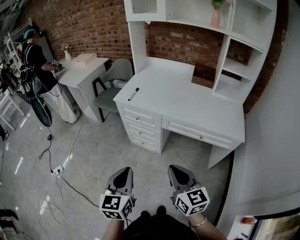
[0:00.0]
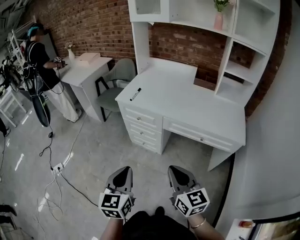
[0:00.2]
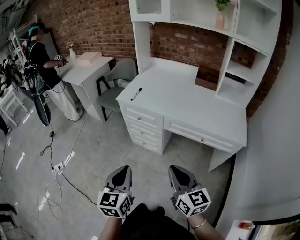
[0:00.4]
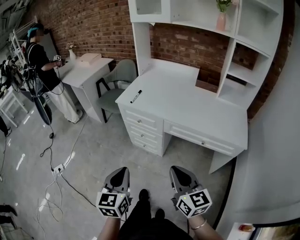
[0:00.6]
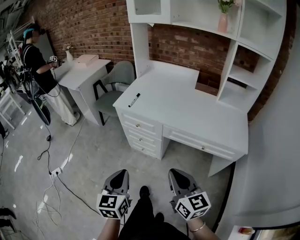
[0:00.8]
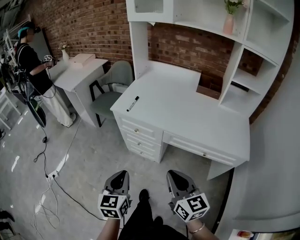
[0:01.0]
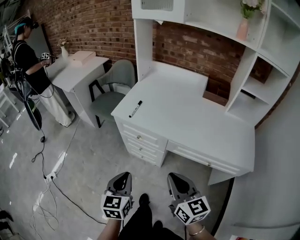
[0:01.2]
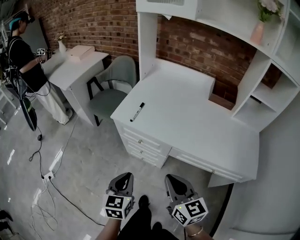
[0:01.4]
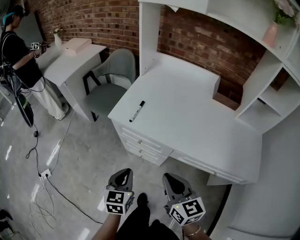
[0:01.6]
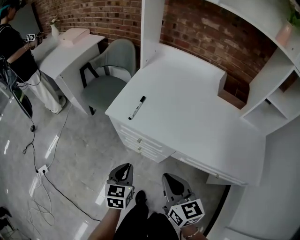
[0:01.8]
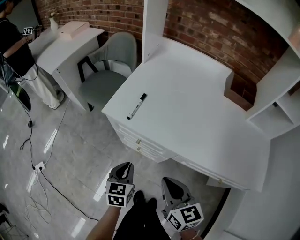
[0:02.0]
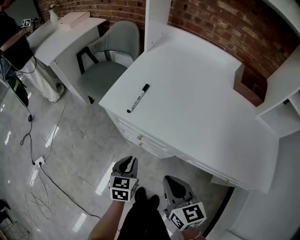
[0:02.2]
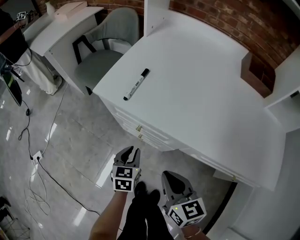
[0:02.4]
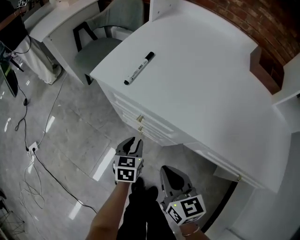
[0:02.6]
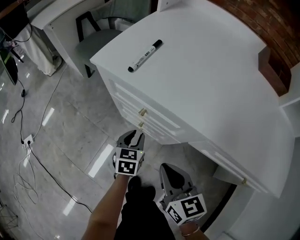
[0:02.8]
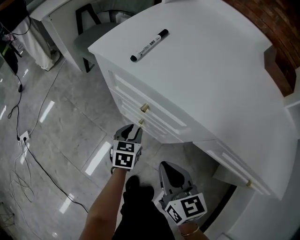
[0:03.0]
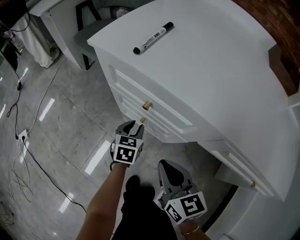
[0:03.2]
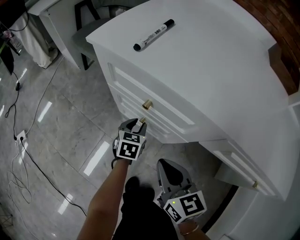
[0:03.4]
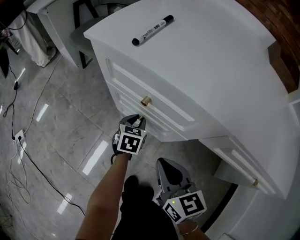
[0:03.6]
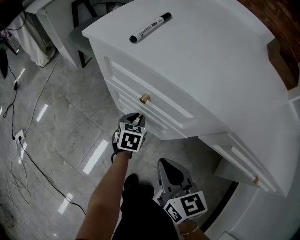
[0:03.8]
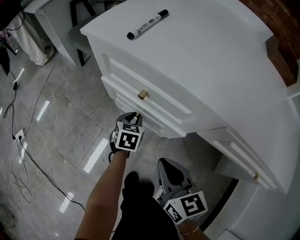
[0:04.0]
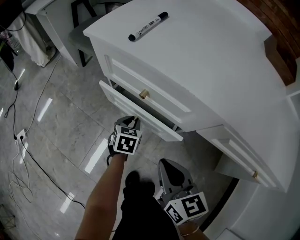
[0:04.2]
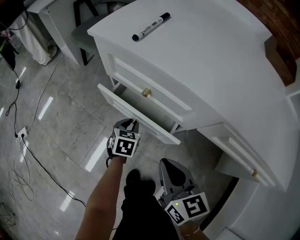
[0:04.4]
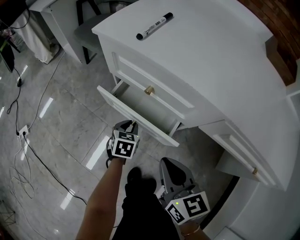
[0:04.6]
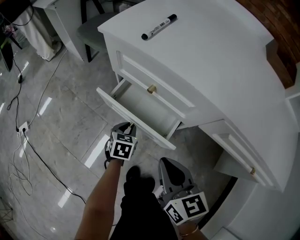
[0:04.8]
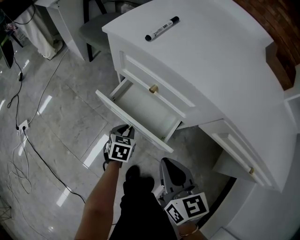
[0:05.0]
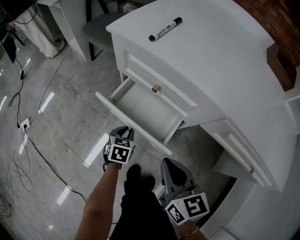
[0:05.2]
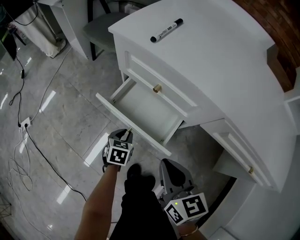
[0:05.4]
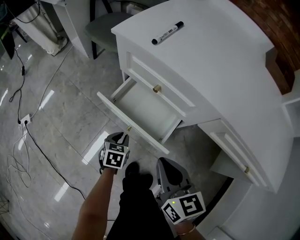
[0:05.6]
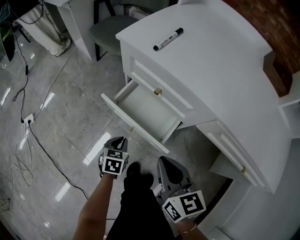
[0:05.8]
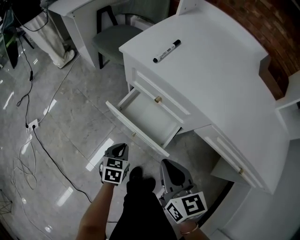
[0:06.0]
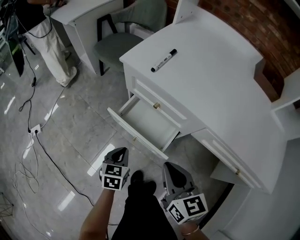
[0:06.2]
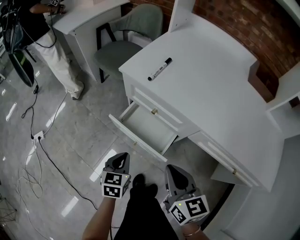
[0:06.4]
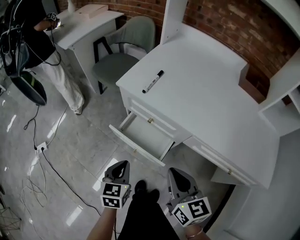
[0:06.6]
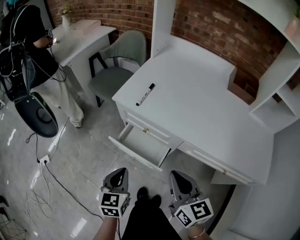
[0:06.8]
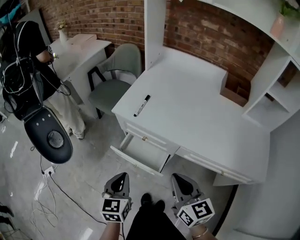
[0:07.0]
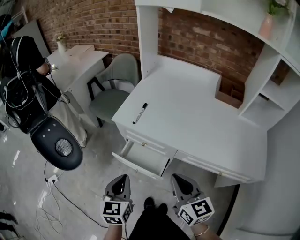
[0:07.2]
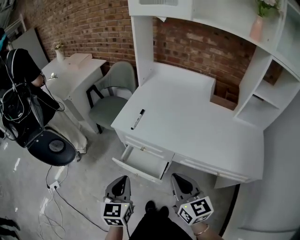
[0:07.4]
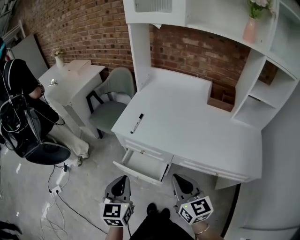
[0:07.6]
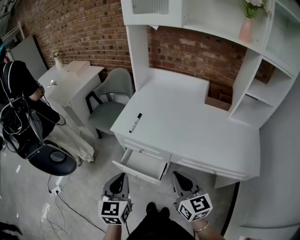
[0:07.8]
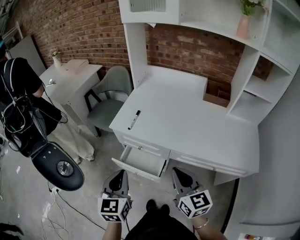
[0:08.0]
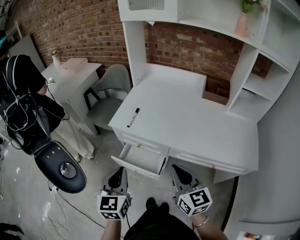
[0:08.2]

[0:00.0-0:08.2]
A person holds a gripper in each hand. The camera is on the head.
0:00.0 to 0:01.6: The left gripper travels forward and downward by approximately 35 cm; the right gripper is displaced forward by some 30 cm.
0:01.6 to 0:03.2: The right gripper goes about 30 cm downward, while the left gripper moves downward and forward, roughly 40 cm, and opens its fingers.
0:03.2 to 0:05.0: The left gripper heads backward, covering about 10 cm. The right gripper heads backward, covering about 5 cm.
0:05.0 to 0:06.6: The left gripper shifts approximately 30 cm upward. Meanwhile the right gripper goes about 15 cm upward.
0:06.6 to 0:08.2: The right gripper moves upward and to the right, some 15 cm. The left gripper travels upward by roughly 25 cm.

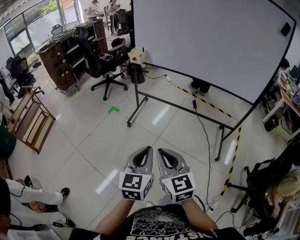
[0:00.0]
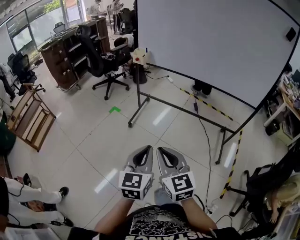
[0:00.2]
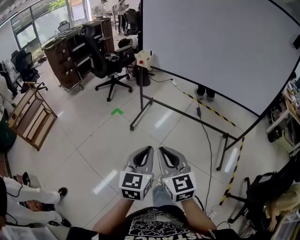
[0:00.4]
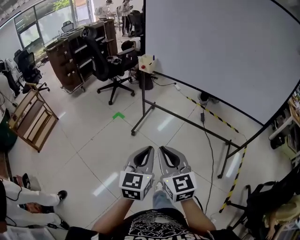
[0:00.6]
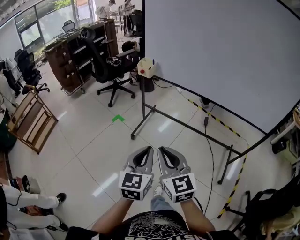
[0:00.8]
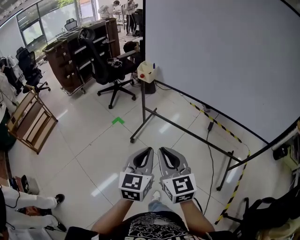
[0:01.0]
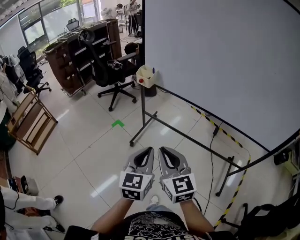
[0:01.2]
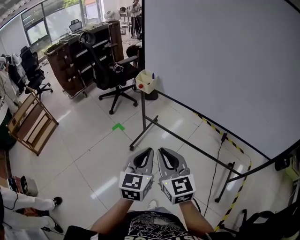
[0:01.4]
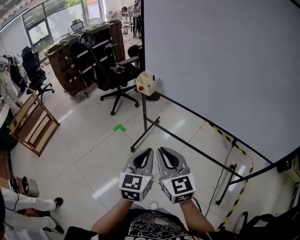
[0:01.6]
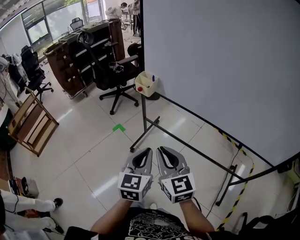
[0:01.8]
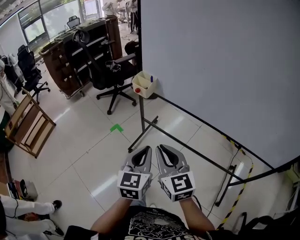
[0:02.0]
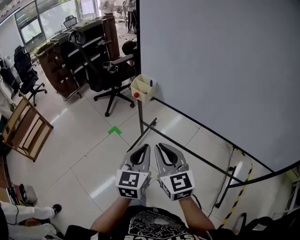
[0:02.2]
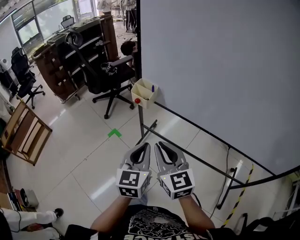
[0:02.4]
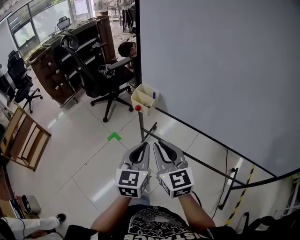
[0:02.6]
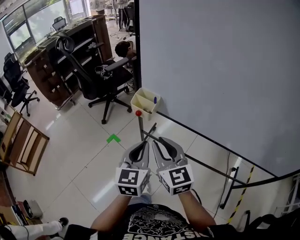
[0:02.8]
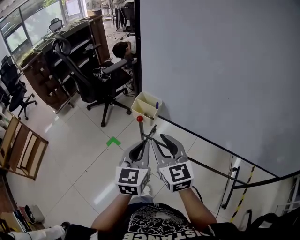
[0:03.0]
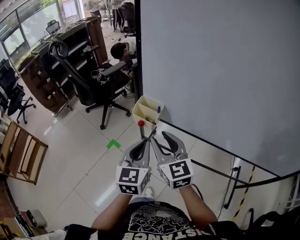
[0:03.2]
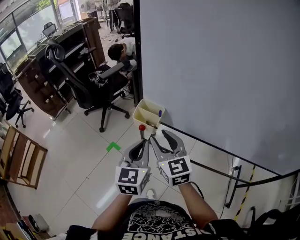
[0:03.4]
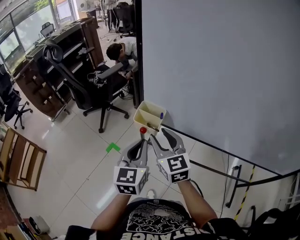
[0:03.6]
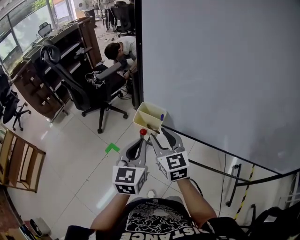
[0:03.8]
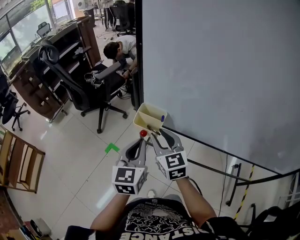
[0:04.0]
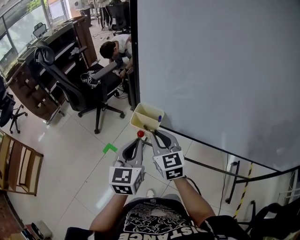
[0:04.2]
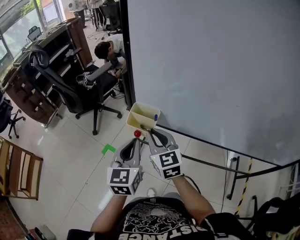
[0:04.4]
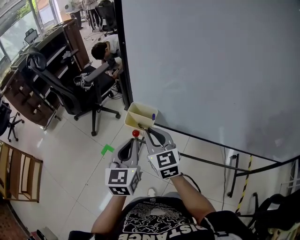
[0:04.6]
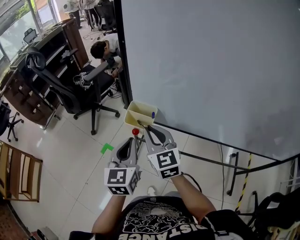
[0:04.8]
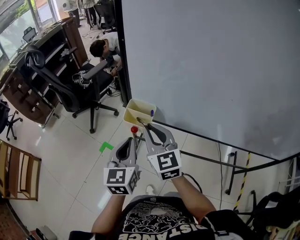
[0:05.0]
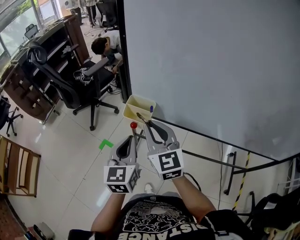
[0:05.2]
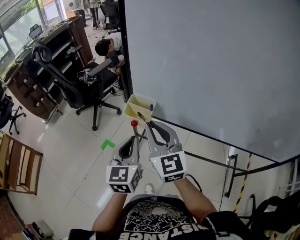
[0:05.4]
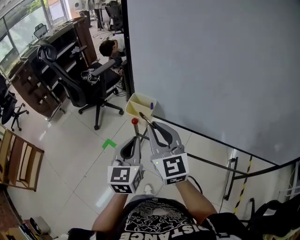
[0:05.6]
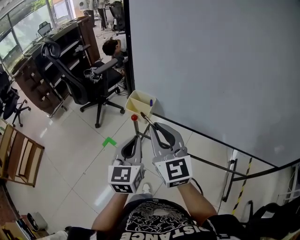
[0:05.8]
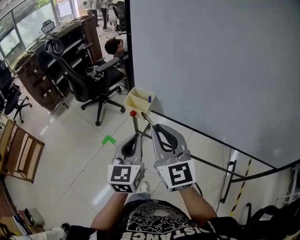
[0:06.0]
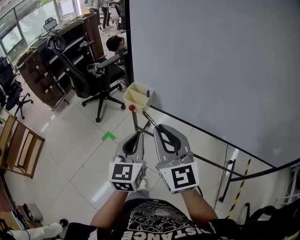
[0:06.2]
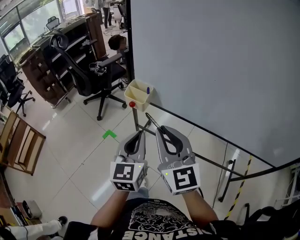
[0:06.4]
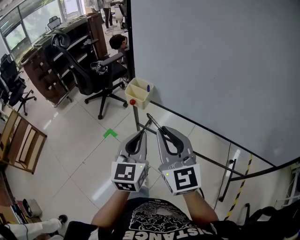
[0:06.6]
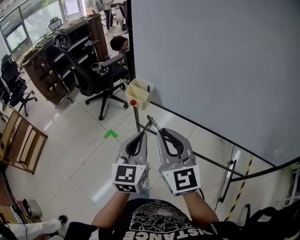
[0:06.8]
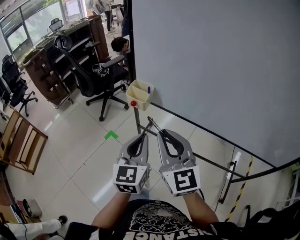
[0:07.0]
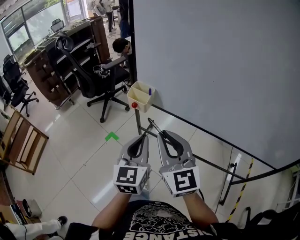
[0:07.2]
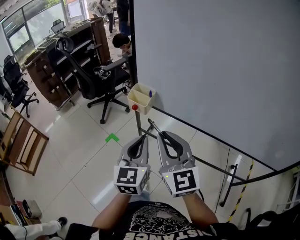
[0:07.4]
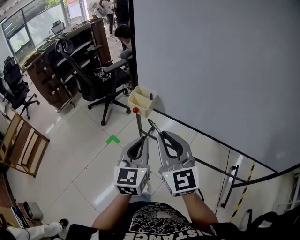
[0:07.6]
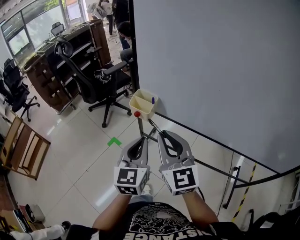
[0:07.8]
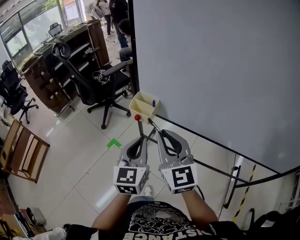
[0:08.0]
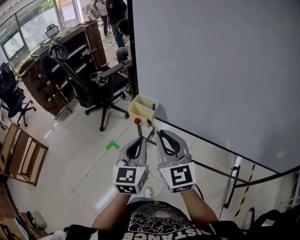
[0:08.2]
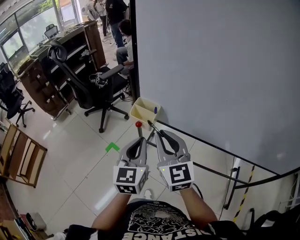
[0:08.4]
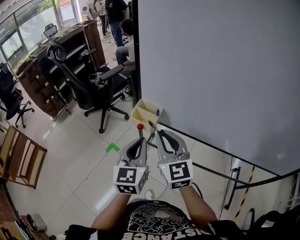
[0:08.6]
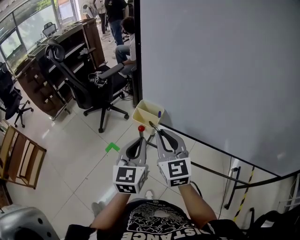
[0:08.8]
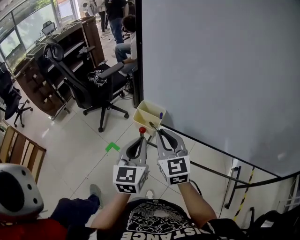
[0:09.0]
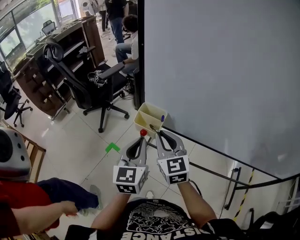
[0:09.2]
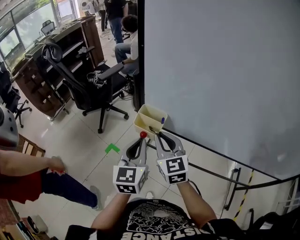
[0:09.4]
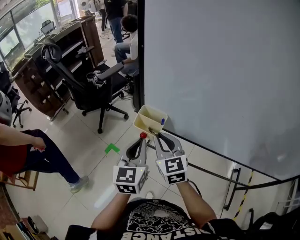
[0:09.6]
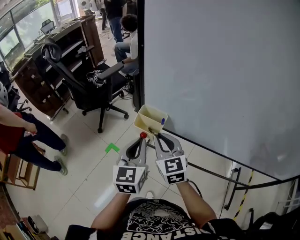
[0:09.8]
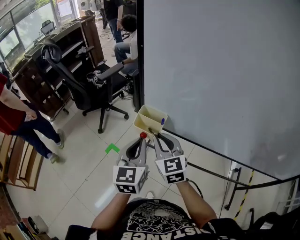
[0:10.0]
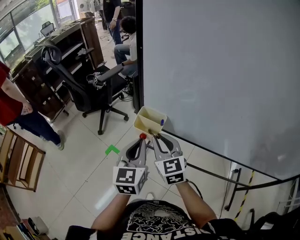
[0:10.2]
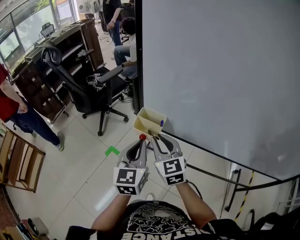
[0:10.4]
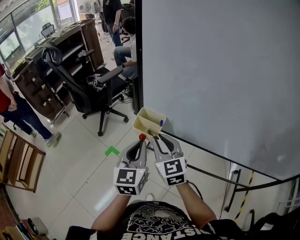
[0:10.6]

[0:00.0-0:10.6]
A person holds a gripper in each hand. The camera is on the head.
0:00.0 to 0:01.6: Both grippers travel together forward, approximately 35 cm.
0:01.6 to 0:03.0: The two grippers go roughly 30 cm forward. The right gripper opens its fingers.
0:03.0 to 0:04.6: Both grippers move forward, roughly 10 cm.
0:04.6 to 0:06.0: The right gripper is displaced backward and upward by roughly 20 cm. The left gripper goes some 10 cm backward.
0:07.6 to 0:09.0: The right gripper shifts approximately 20 cm forward and downward; the left gripper moves forward, roughly 15 cm.
0:09.0 to 0:10.6: The grippers make only small movements.

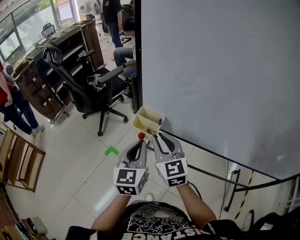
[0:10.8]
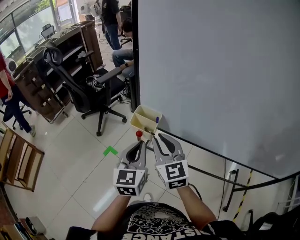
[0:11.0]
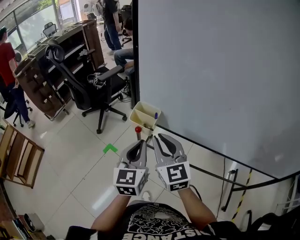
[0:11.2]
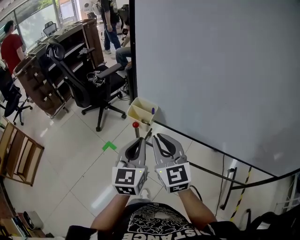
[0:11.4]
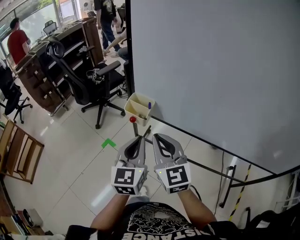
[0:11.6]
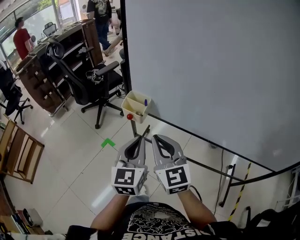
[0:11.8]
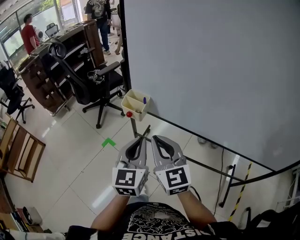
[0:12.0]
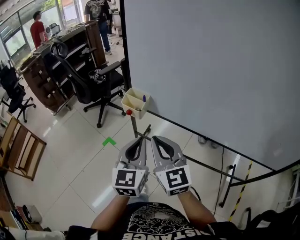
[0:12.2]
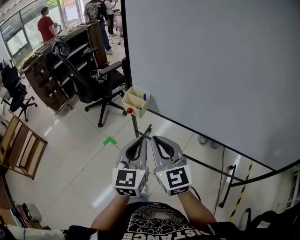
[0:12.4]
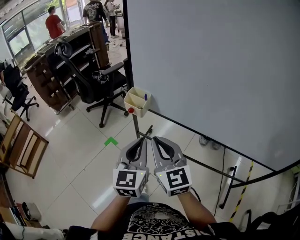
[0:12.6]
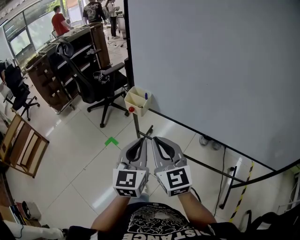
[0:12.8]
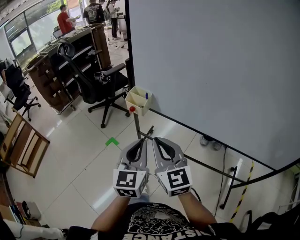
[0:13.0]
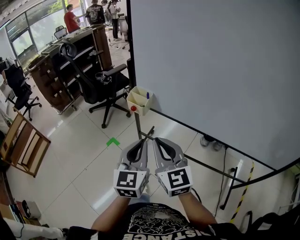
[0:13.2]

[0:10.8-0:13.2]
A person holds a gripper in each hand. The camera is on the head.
0:10.8 to 0:12.0: The left gripper travels backward and to the right by roughly 15 cm, while the right gripper goes about 15 cm backward.
0:12.0 to 0:13.2: The grippers both shift backward by approximately 5 cm.

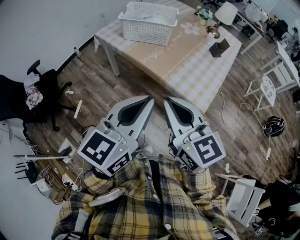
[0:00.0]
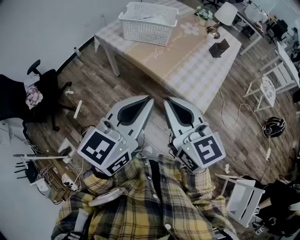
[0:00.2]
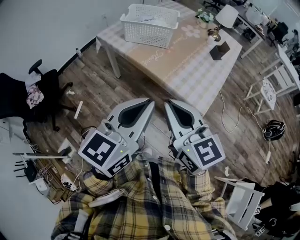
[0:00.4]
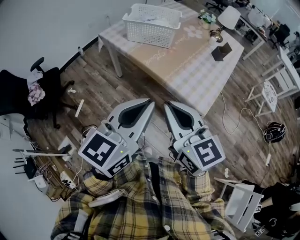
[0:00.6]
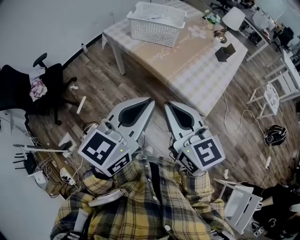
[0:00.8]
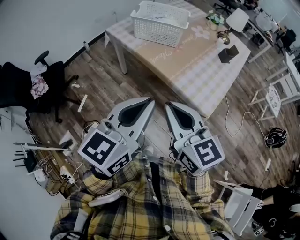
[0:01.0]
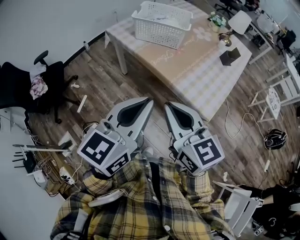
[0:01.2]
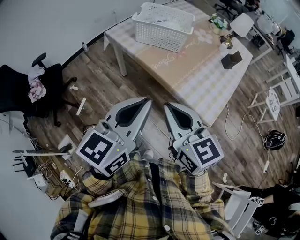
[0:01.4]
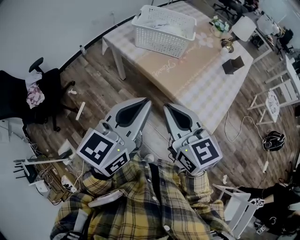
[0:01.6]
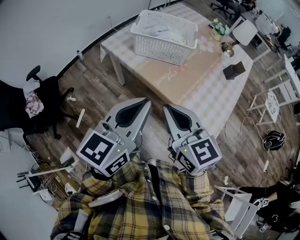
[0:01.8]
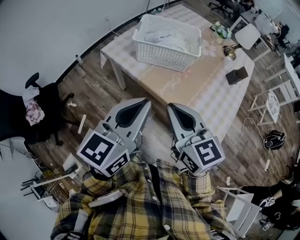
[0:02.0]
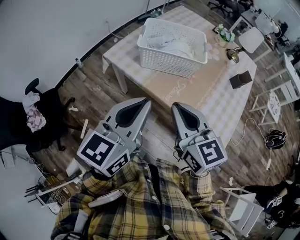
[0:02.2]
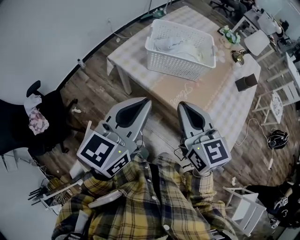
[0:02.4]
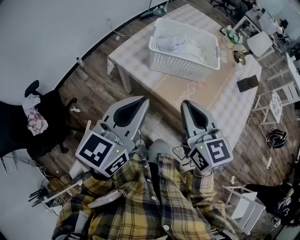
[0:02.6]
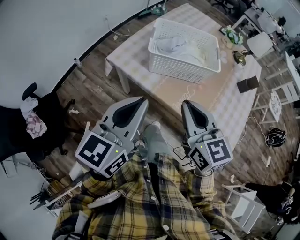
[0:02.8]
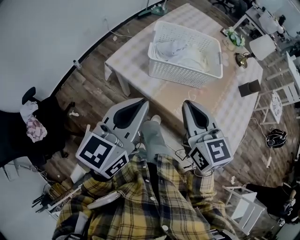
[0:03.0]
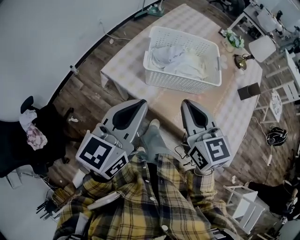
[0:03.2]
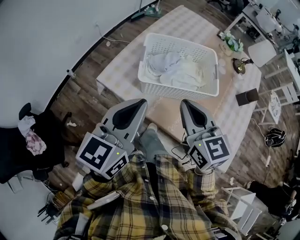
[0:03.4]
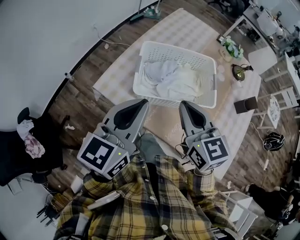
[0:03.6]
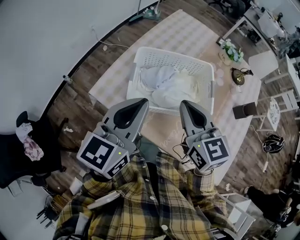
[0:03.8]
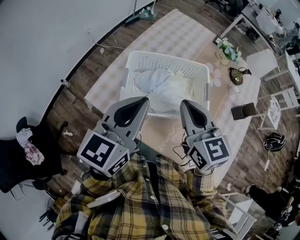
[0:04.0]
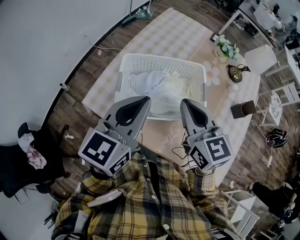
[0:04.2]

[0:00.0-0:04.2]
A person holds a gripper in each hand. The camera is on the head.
0:00.0 to 0:01.4: The right gripper moves some 5 cm; the left gripper goes about 5 cm forward.
0:01.4 to 0:02.8: Both grippers move forward and to the left, some 30 cm.
0:02.8 to 0:04.2: Both grippers move forward, approximately 25 cm.
